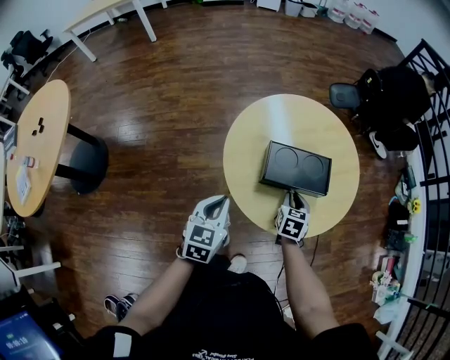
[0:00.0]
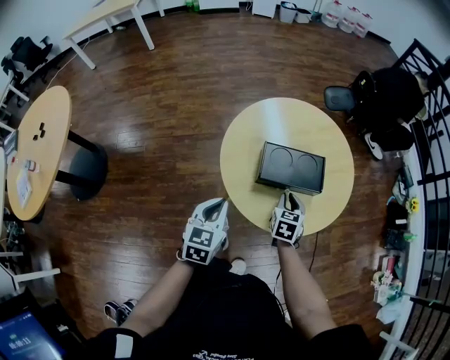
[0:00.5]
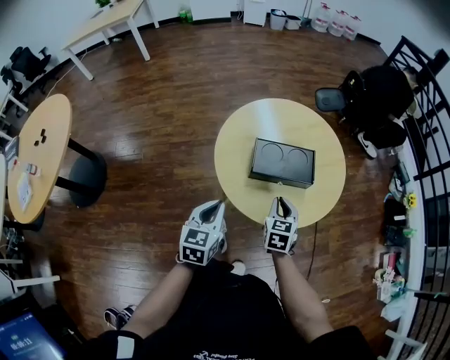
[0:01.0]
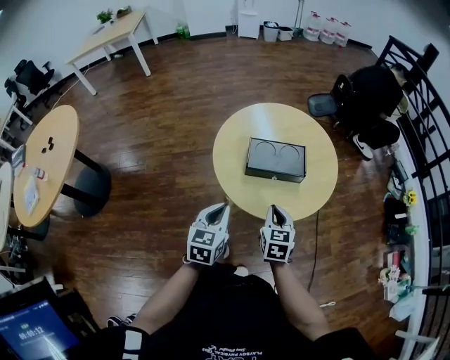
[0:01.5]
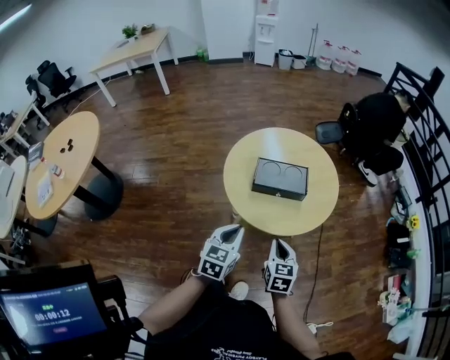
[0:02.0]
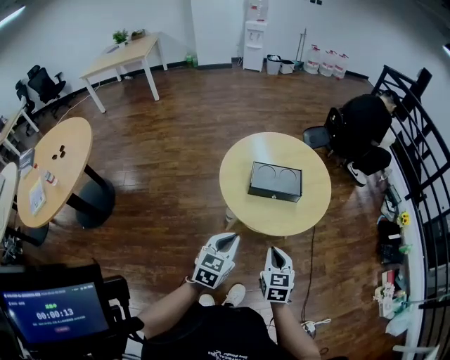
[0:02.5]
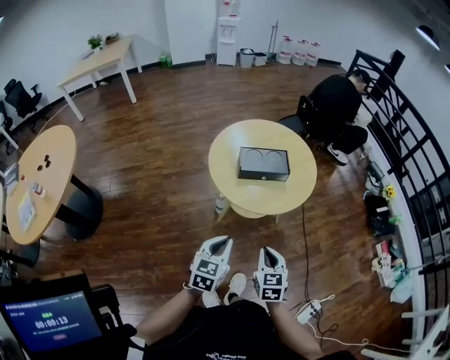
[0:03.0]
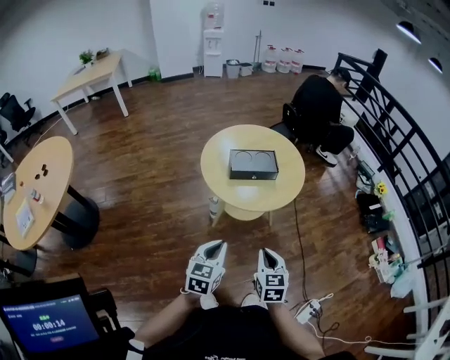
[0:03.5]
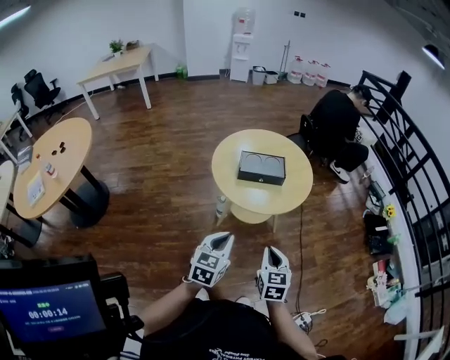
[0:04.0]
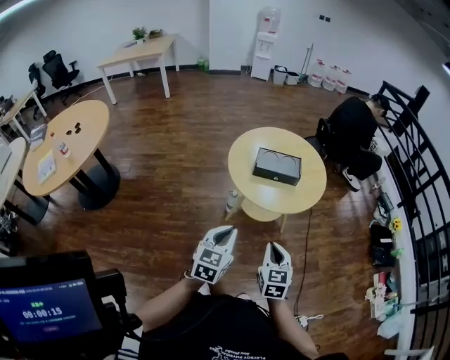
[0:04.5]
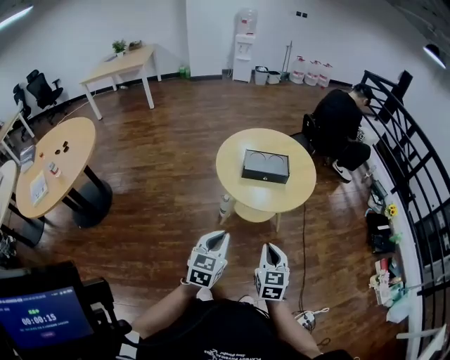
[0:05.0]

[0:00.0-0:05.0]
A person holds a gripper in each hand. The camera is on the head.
0:00.0 to 0:02.5: The left gripper is displaced backward, to the right and upward by some 20 cm, while the right gripper moves backward and upward, some 30 cm.
0:02.5 to 0:05.0: The grippers both shift backward by roughly 15 cm.

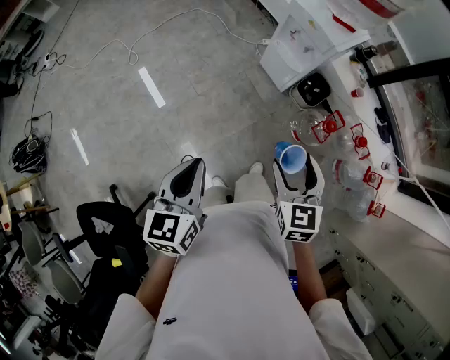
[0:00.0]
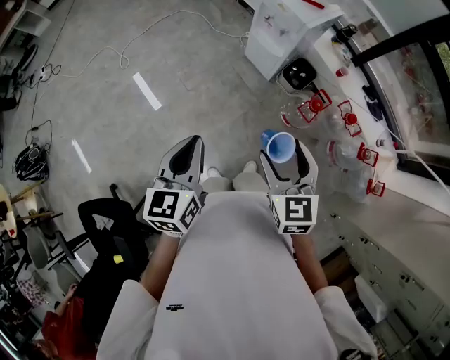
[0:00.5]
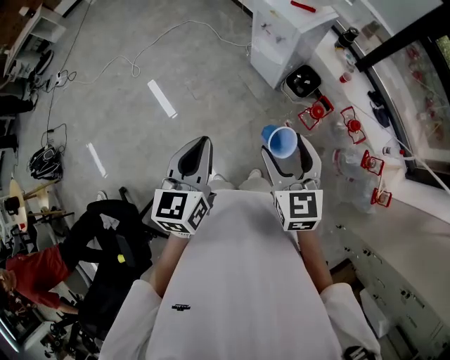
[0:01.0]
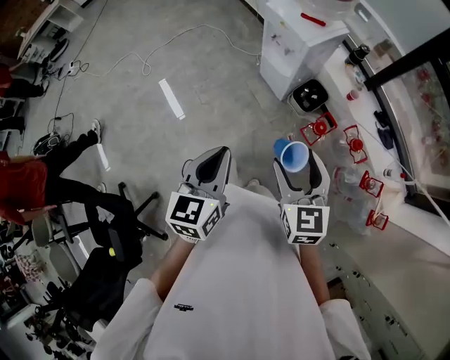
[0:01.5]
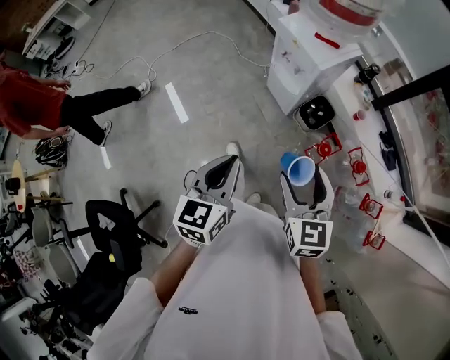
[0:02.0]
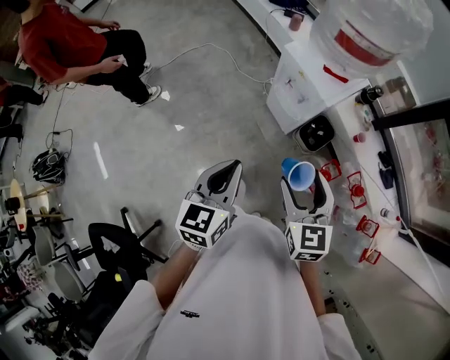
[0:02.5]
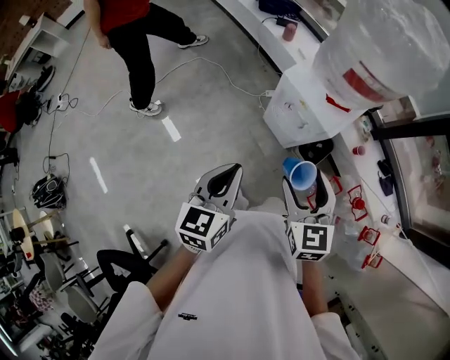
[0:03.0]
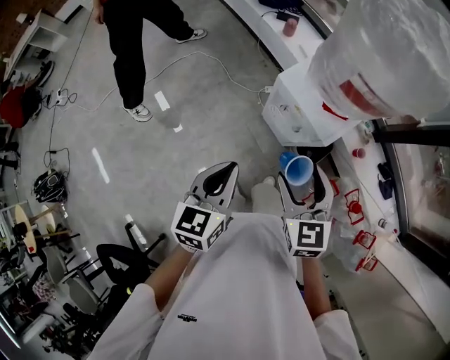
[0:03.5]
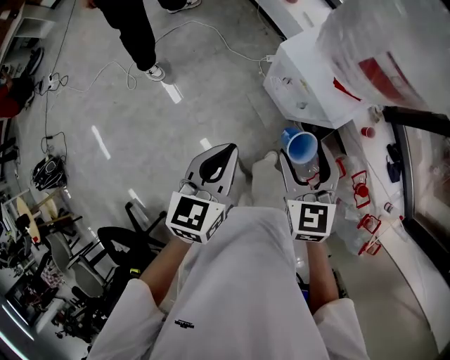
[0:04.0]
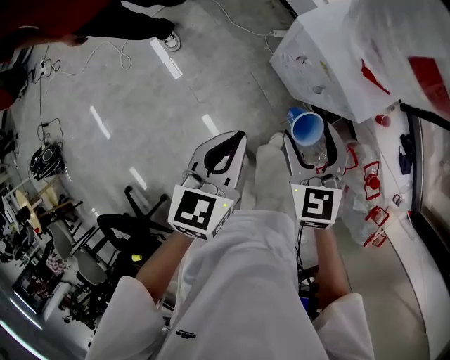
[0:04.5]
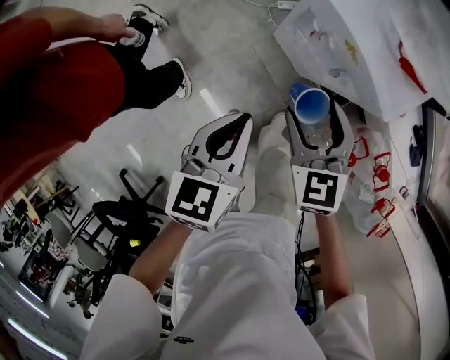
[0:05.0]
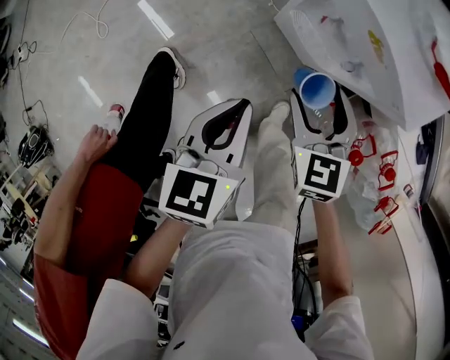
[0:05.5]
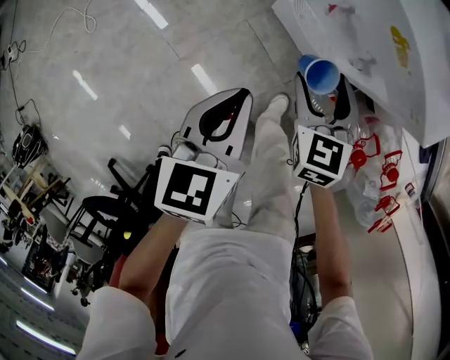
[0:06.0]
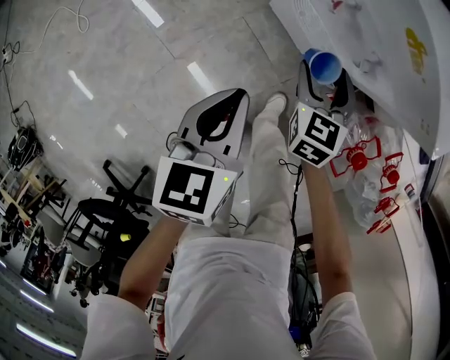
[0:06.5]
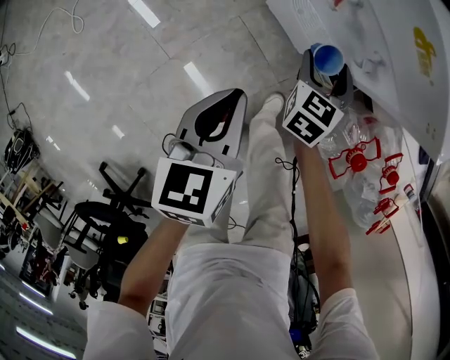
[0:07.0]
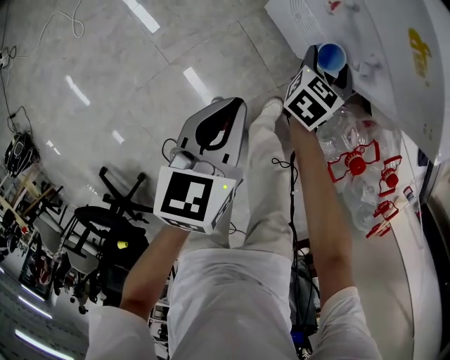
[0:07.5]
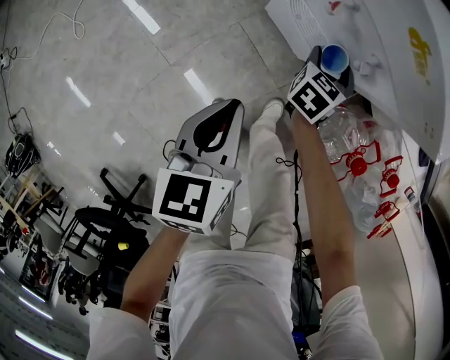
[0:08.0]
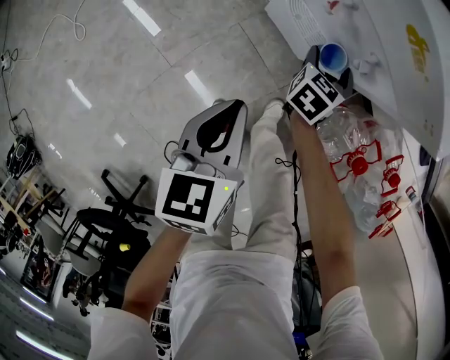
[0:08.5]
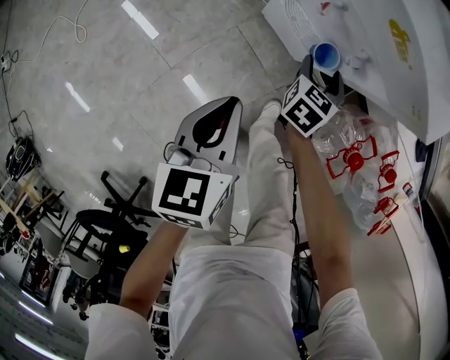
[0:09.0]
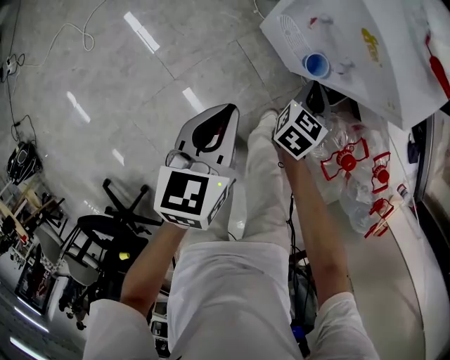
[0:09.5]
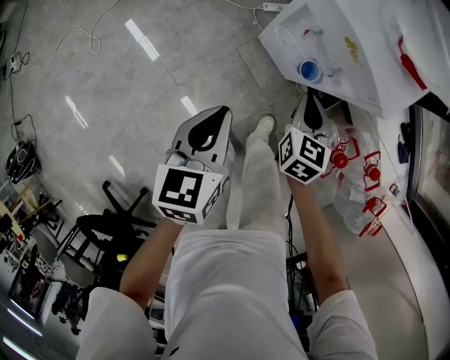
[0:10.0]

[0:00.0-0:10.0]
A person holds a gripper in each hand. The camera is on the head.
0:00.0 to 0:02.0: The left gripper heads to the right, covering approximately 20 cm, while the right gripper shifts approximately 15 cm to the right and upward.
0:02.0 to 0:04.0: The grippers both shift forward by approximately 35 cm.
0:04.0 to 0:06.0: The two grippers go roughly 25 cm downward.
0:06.0 to 0:08.0: The left gripper travels downward by roughly 5 cm. The right gripper goes about 20 cm downward, forward and to the right, and rotates about 30 degrees.
0:08.0 to 0:10.0: The left gripper travels upward by approximately 10 cm; the right gripper travels upward and backward by roughly 20 cm, turns by approximately 20 degrees, and closes.

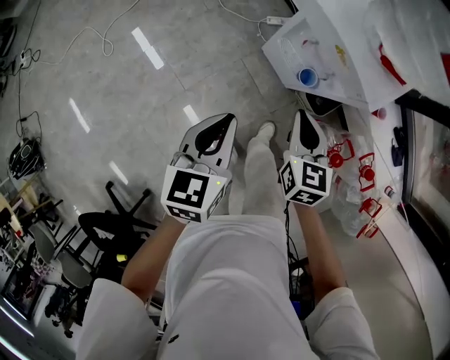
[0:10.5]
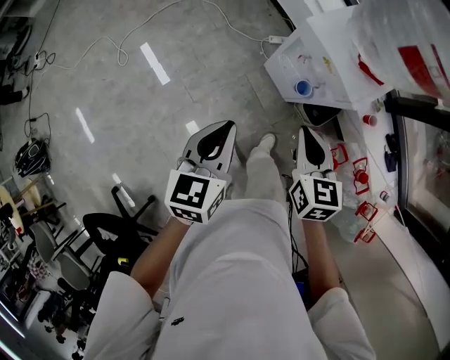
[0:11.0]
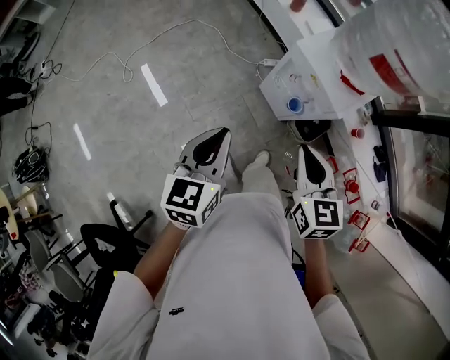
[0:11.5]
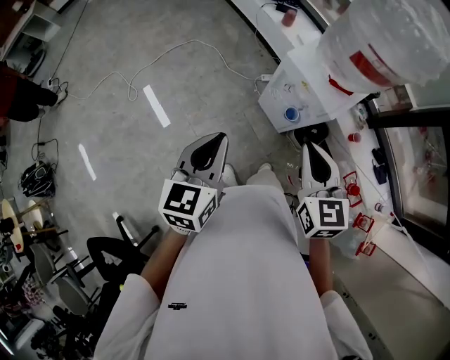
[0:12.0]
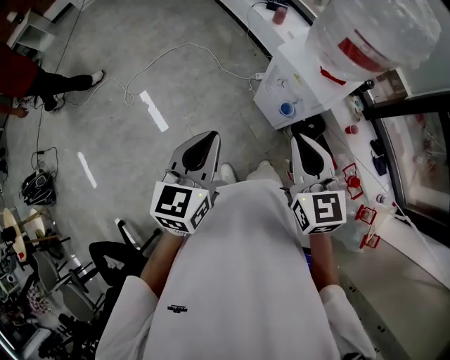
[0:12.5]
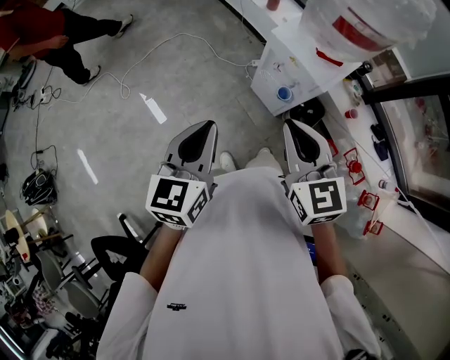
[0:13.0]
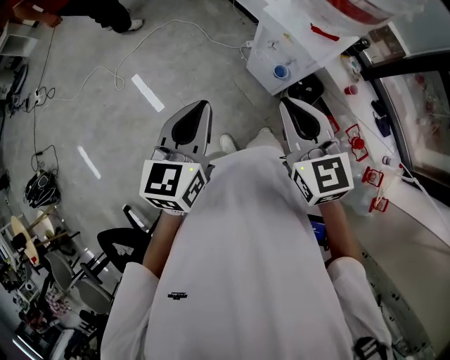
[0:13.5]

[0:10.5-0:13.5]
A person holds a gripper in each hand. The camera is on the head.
0:10.5 to 0:12.0: Both grippers move upward, roughly 20 cm.
0:12.0 to 0:13.5: The right gripper changes place by some 5 cm.

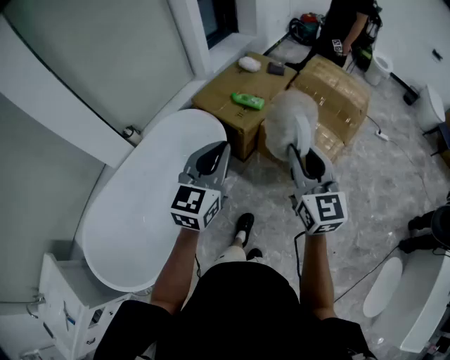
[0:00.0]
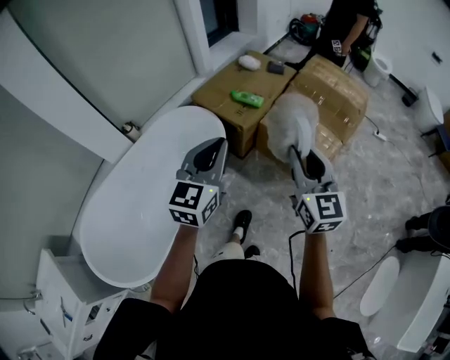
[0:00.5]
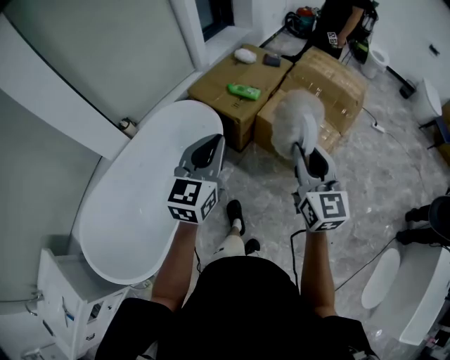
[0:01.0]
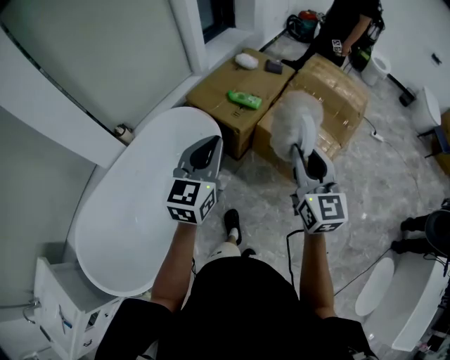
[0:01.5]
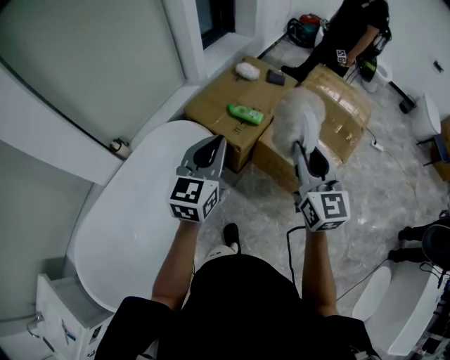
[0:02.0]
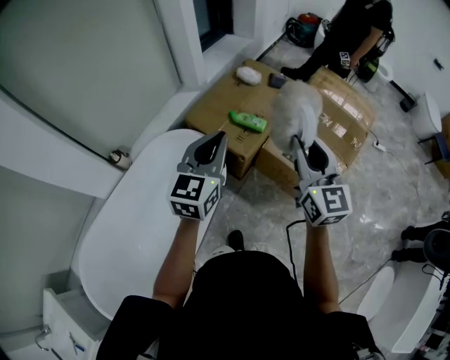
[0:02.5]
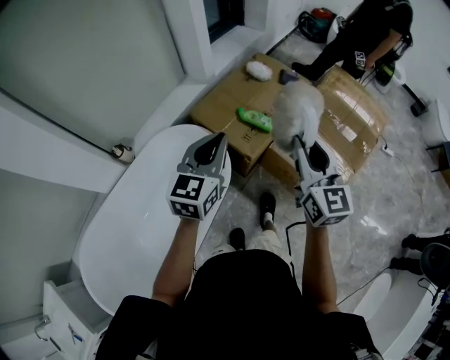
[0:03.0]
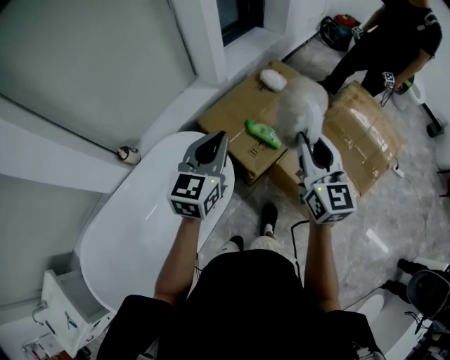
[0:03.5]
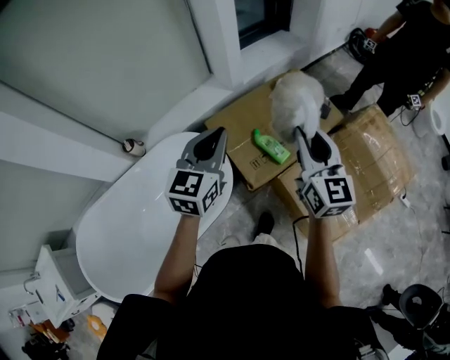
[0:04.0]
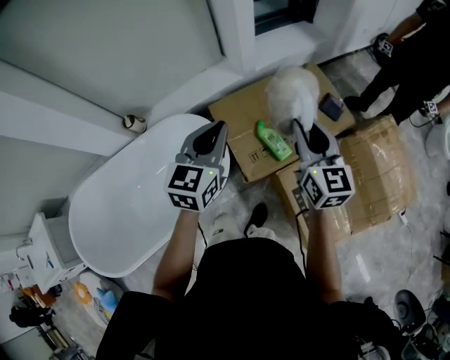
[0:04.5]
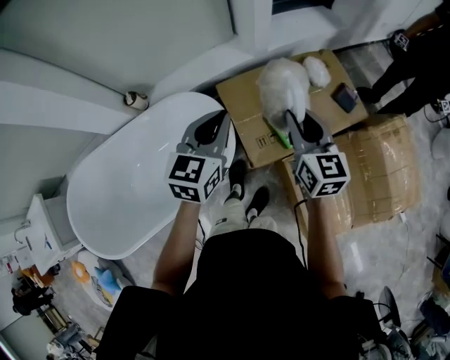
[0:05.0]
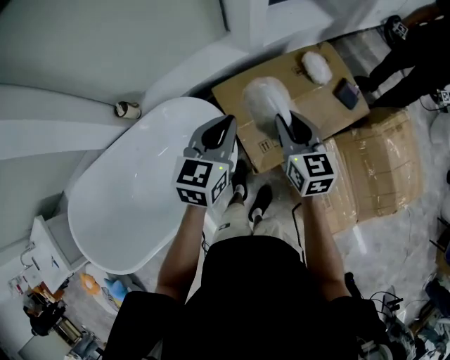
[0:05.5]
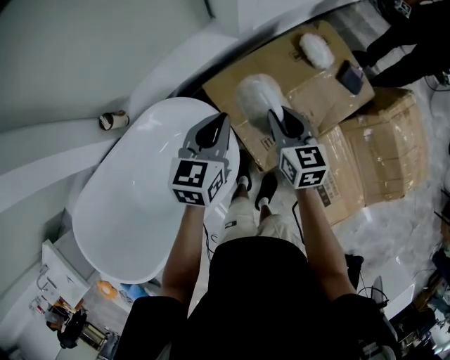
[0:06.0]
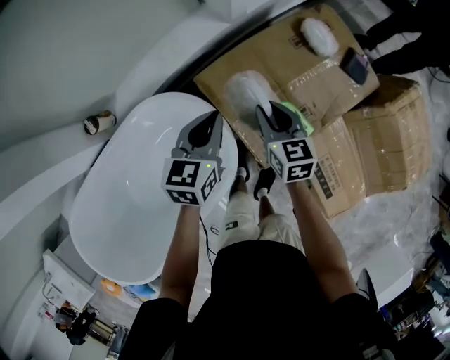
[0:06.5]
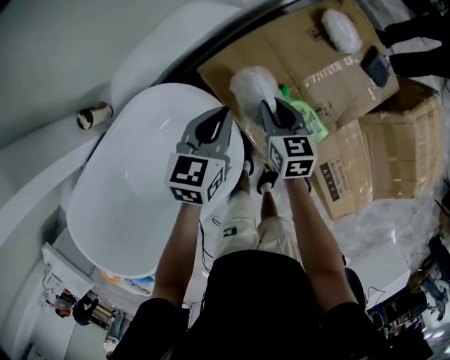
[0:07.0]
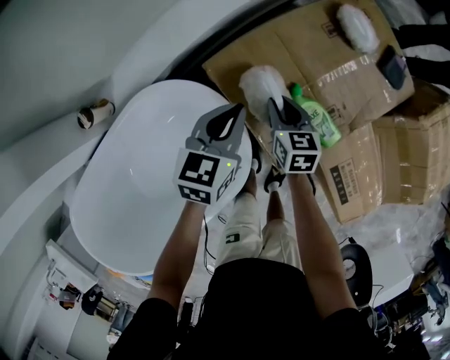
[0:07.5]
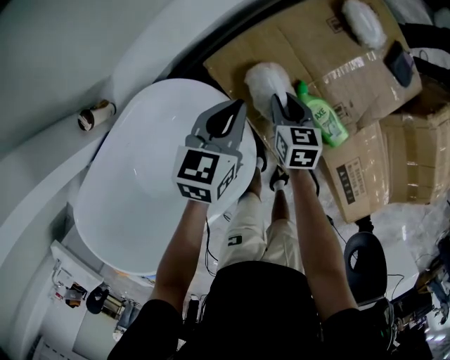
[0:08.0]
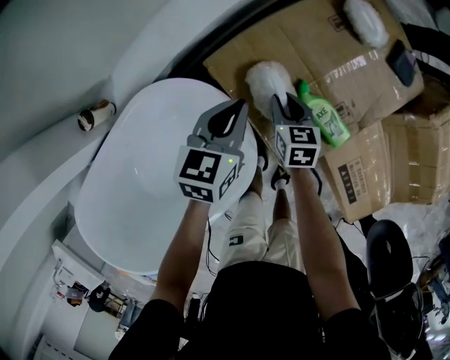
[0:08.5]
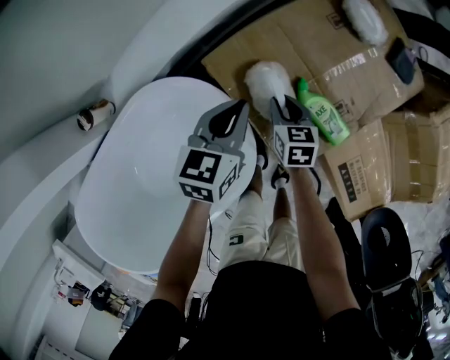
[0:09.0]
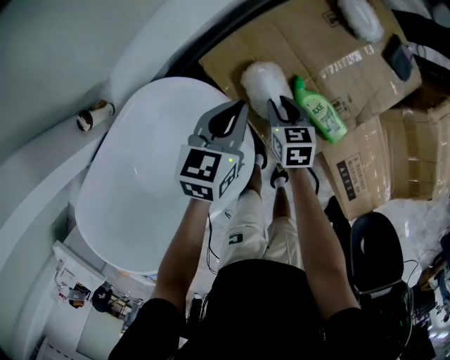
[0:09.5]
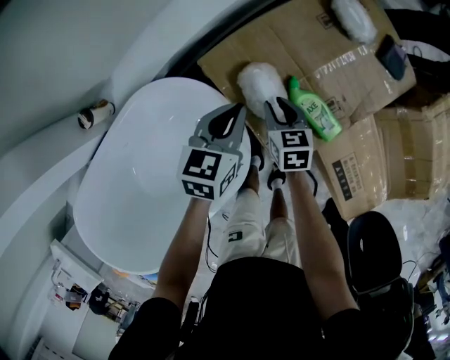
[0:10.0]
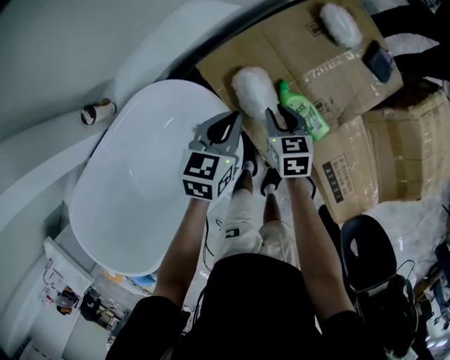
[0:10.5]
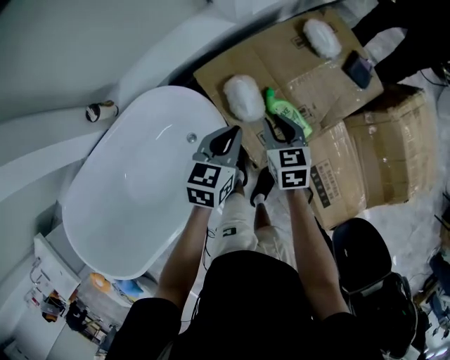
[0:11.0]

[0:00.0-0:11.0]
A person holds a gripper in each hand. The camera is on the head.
0:00.0 to 0:02.0: The grippers both shift forward by about 20 cm.
0:02.0 to 0:03.5: Both grippers move forward, some 25 cm.
0:03.5 to 0:05.5: Both grippers move forward and downward, about 25 cm. The left gripper rotates approximately 20 degrees, while the right gripper swivels about 30 degrees.
0:05.5 to 0:07.5: The left gripper shifts some 30 cm downward and forward. The right gripper heads downward, covering roughly 35 cm, and changes its angle by about 30 degrees.
0:07.5 to 0:09.0: The right gripper shifts about 5 cm downward.
0:09.0 to 0:11.0: The right gripper shifts about 20 cm upward and backward. The left gripper goes approximately 15 cm backward, upward and to the right.
